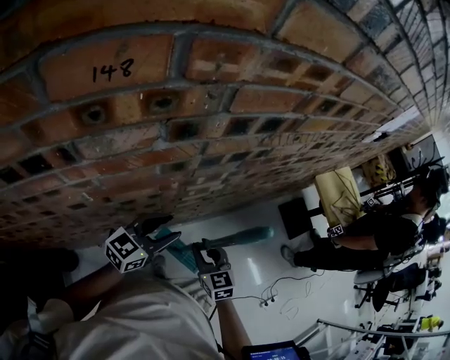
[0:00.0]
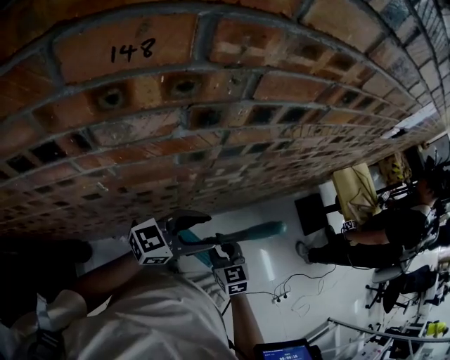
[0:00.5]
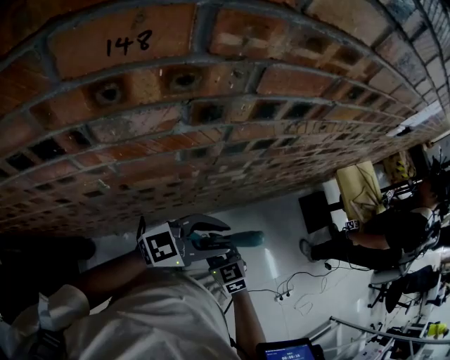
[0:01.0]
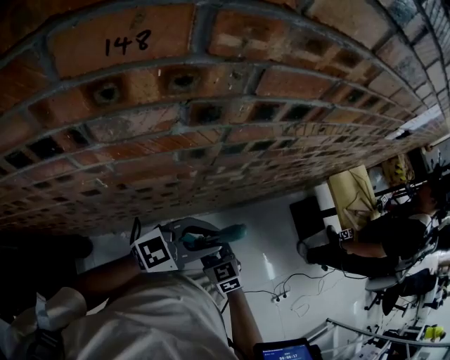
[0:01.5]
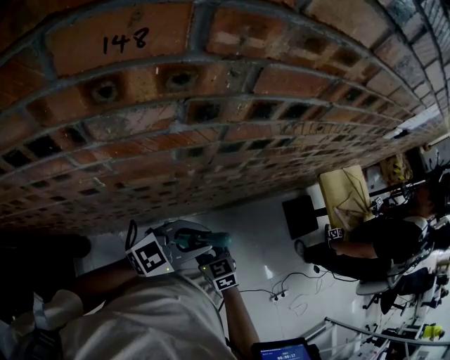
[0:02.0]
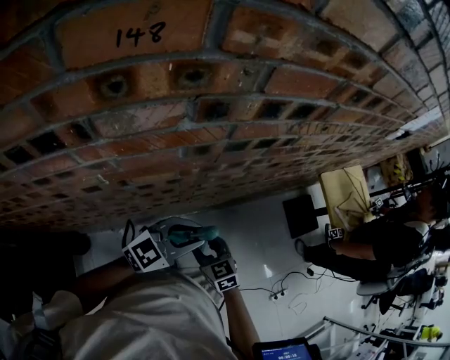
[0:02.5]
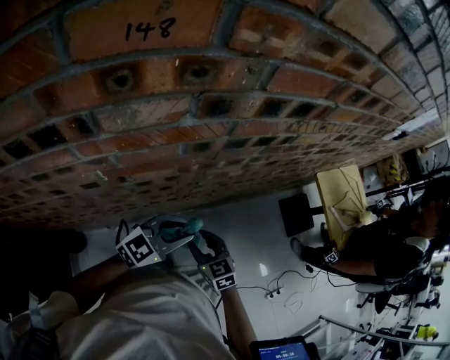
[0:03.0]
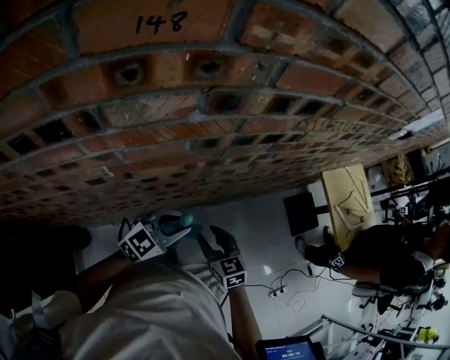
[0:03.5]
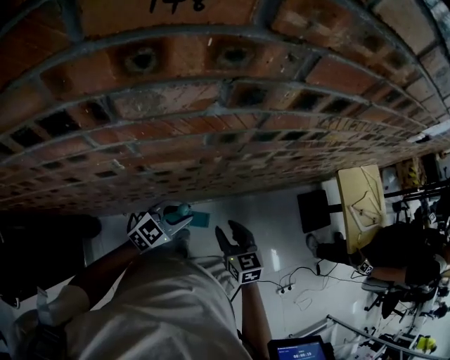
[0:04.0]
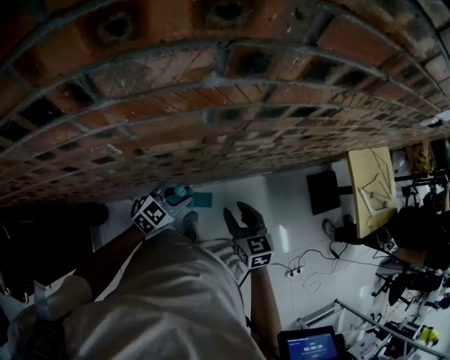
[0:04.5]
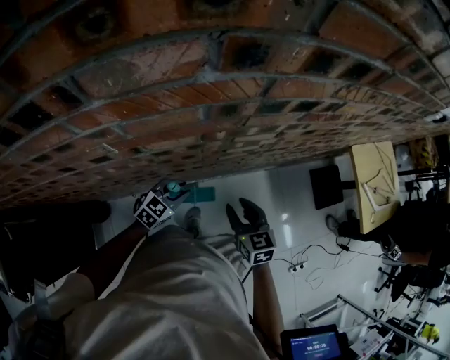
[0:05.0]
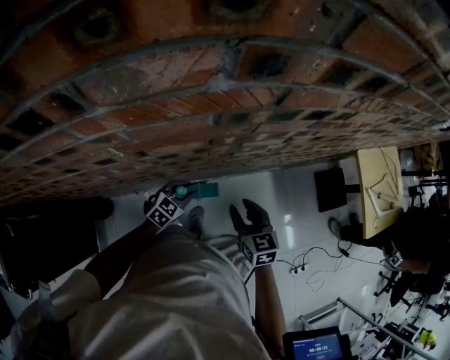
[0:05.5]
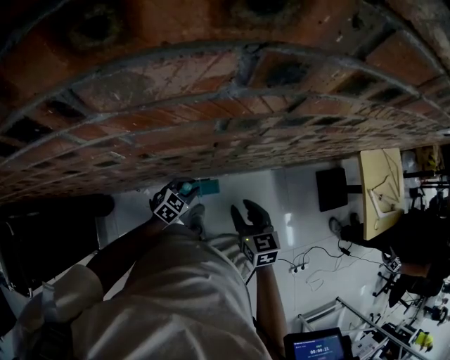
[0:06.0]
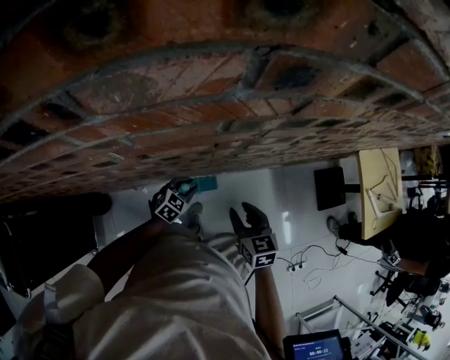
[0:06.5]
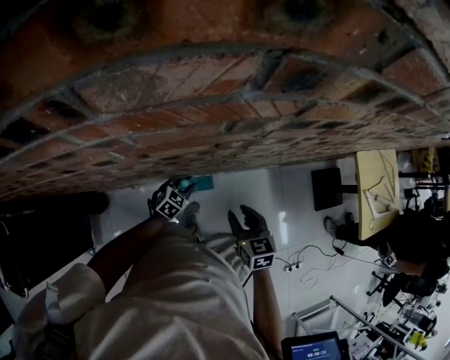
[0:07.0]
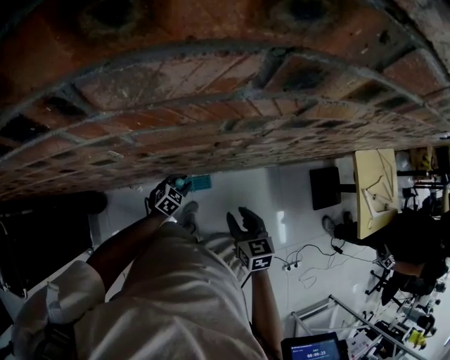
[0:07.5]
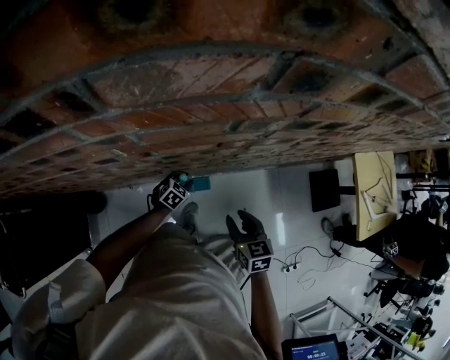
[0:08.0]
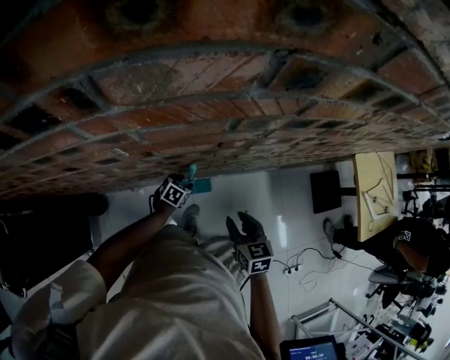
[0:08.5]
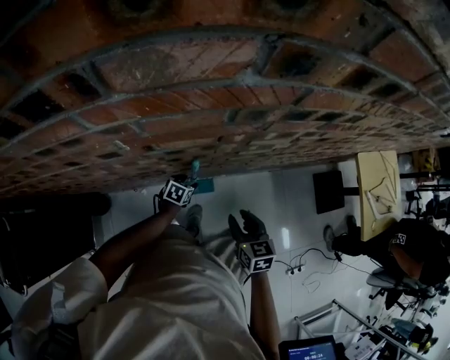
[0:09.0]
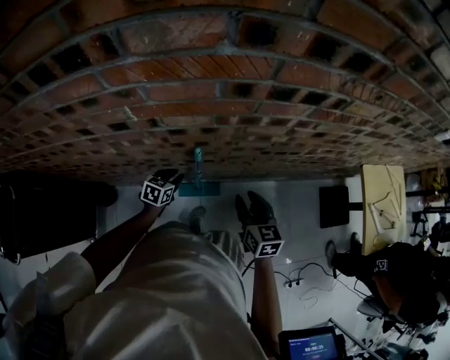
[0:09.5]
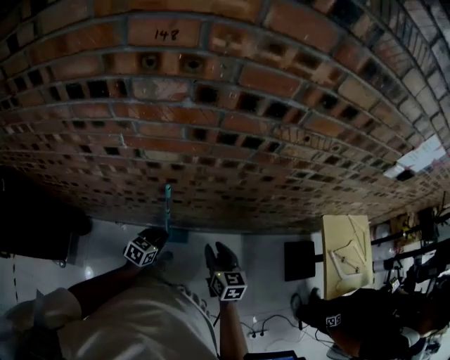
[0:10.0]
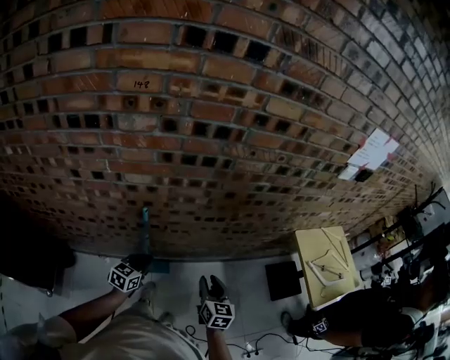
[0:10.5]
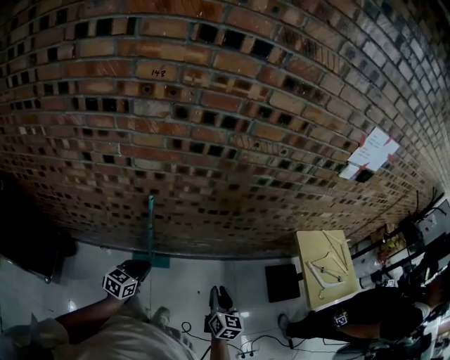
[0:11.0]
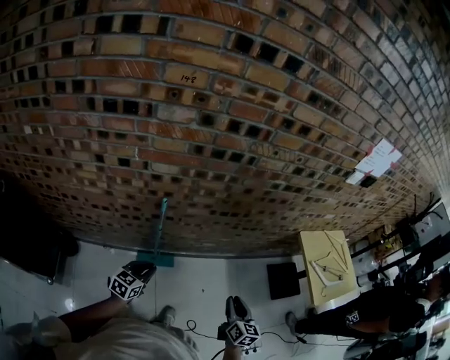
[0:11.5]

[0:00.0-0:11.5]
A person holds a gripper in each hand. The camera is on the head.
0:00.0 to 0:02.0: The right gripper changes place by about 5 cm. Meanwhile the left gripper goes approximately 10 cm to the right, and turns by approximately 20 degrees.
0:02.0 to 0:04.0: The left gripper goes some 20 cm downward and to the left, and turns by about 20 degrees.
0:04.0 to 0:06.0: The left gripper travels downward by some 15 cm, and turns by about 20 degrees.
0:06.0 to 0:07.5: The left gripper heads downward, covering approximately 5 cm.
0:07.5 to 0:09.5: The left gripper travels upward and to the left by some 10 cm, turns by roughly 30 degrees, and opens and closes again, while the right gripper changes place by roughly 5 cm.
0:09.5 to 0:11.5: The left gripper heads backward, upward and to the right, covering roughly 30 cm. The right gripper moves to the right and backward, roughly 30 cm, and rotates approximately 20 degrees.

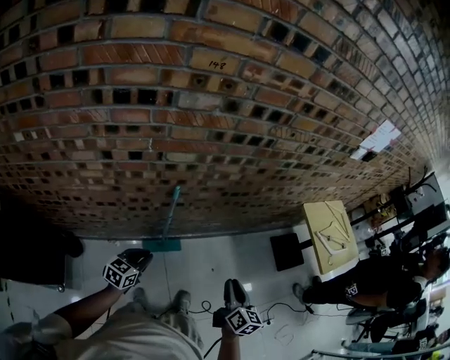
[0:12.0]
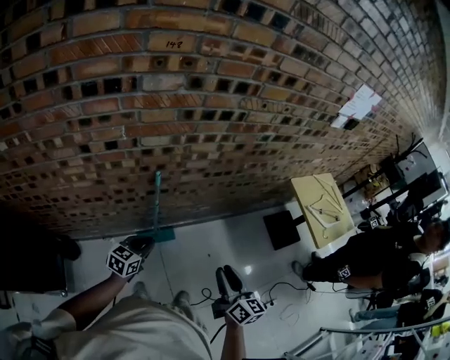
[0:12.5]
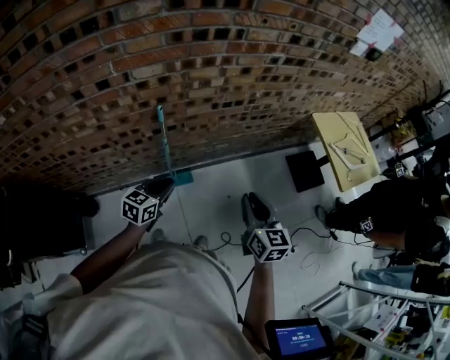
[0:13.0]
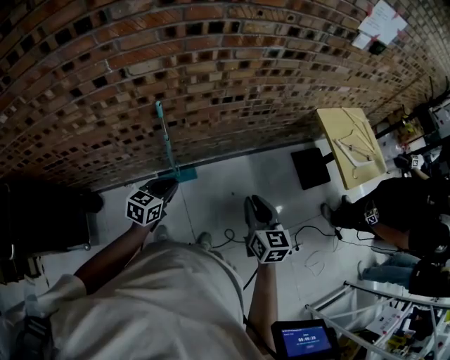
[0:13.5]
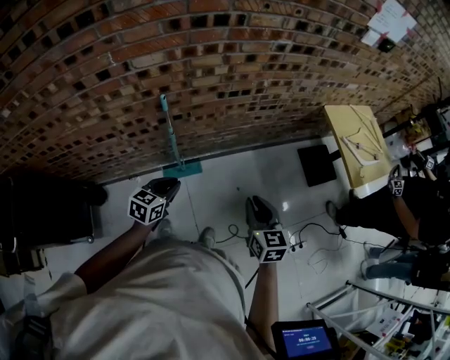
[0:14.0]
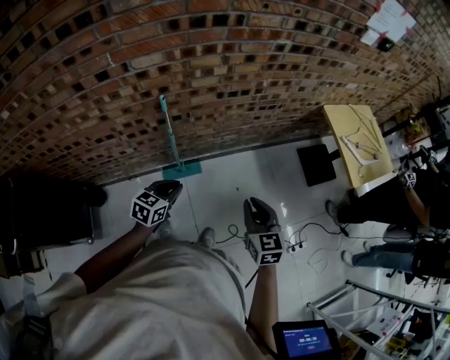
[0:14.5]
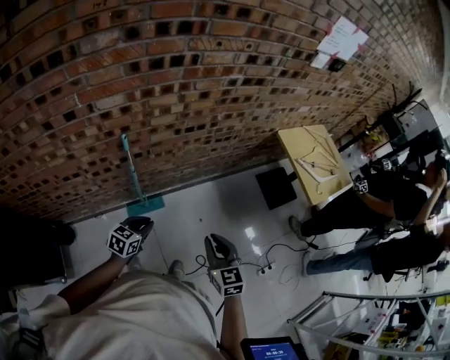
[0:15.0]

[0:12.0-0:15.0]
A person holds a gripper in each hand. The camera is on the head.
0:12.0 to 0:13.5: The left gripper shifts some 15 cm to the right, while the right gripper moves to the right, about 10 cm, and rotates some 20 degrees.
0:13.5 to 0:15.0: The right gripper shifts roughly 5 cm backward; the left gripper shifts roughly 5 cm downward.

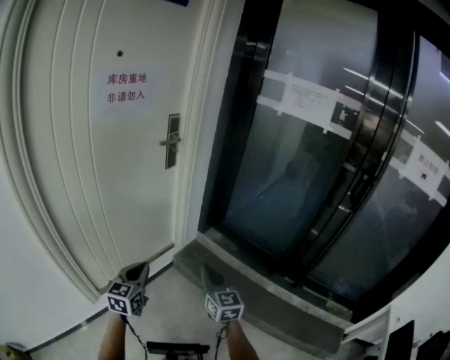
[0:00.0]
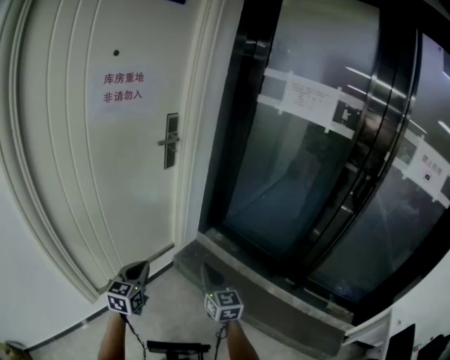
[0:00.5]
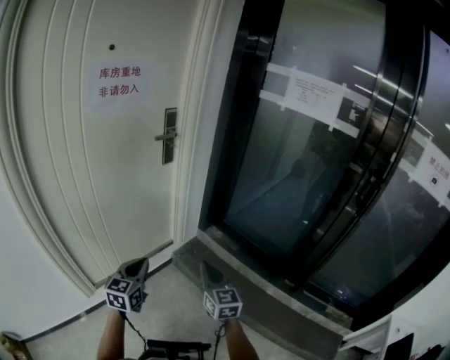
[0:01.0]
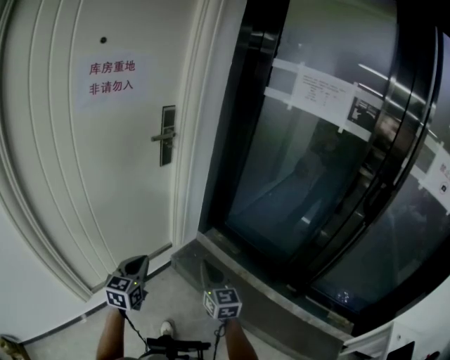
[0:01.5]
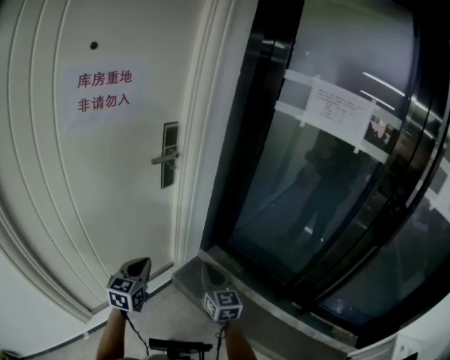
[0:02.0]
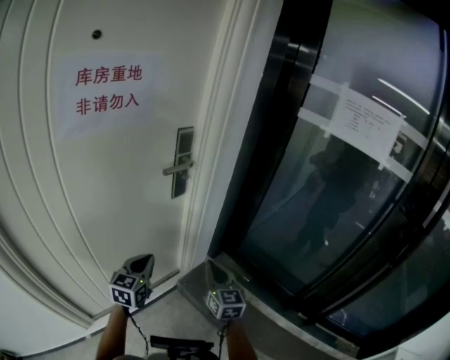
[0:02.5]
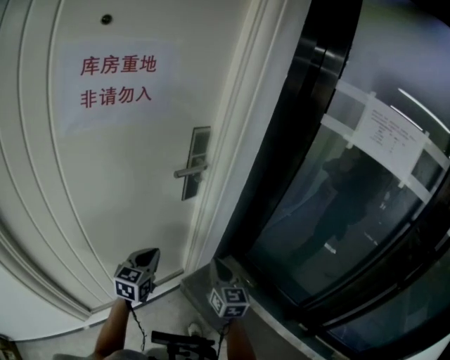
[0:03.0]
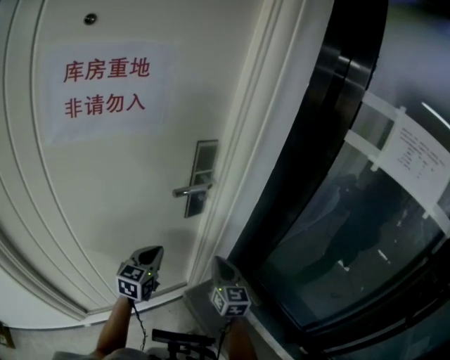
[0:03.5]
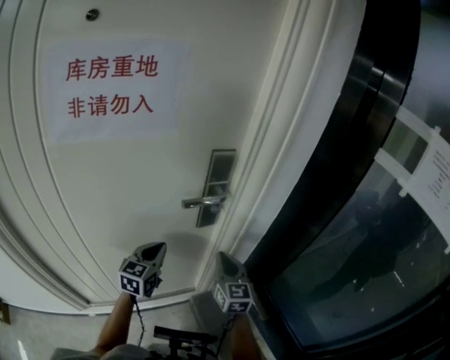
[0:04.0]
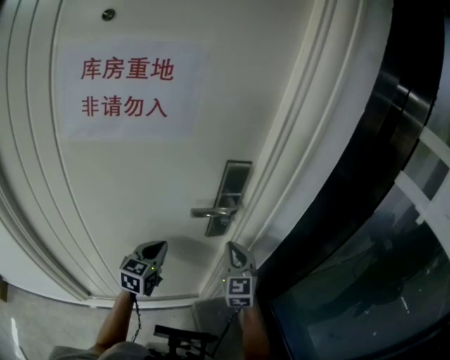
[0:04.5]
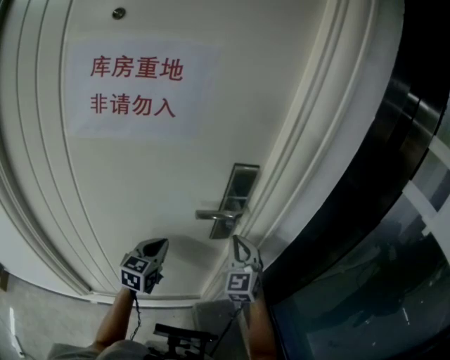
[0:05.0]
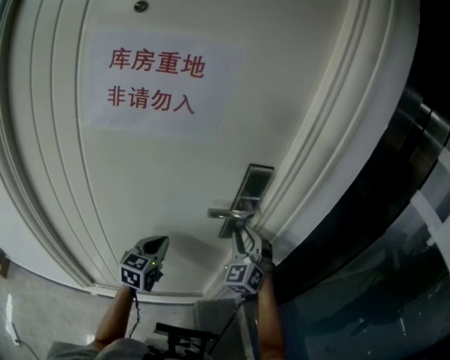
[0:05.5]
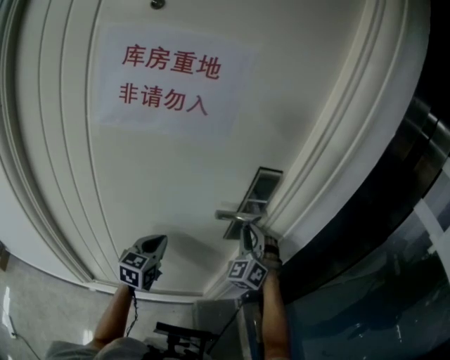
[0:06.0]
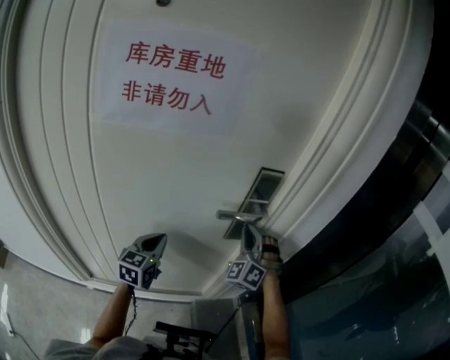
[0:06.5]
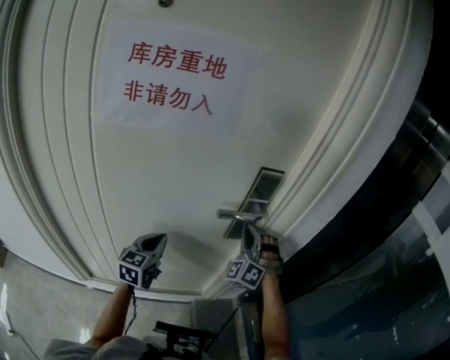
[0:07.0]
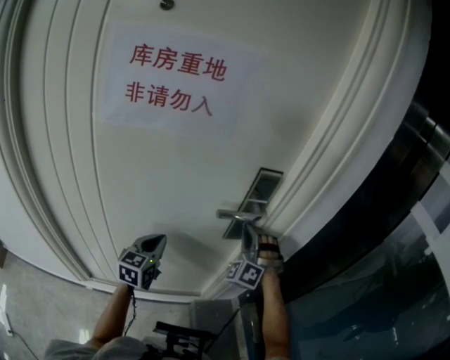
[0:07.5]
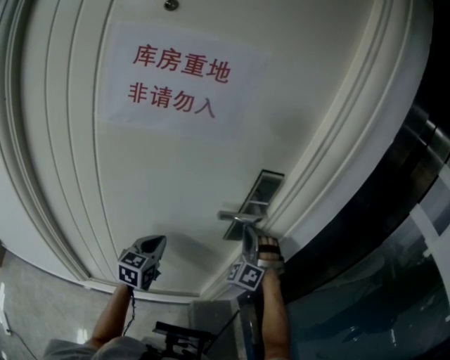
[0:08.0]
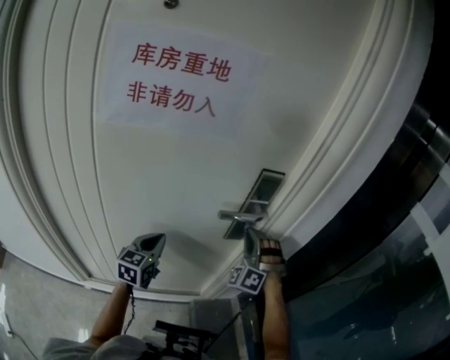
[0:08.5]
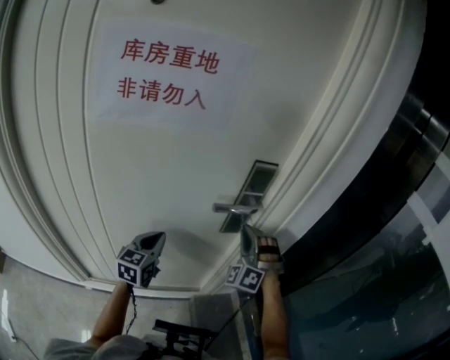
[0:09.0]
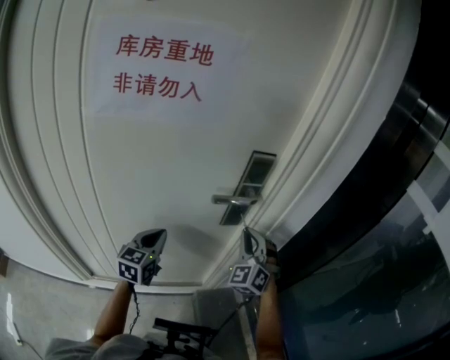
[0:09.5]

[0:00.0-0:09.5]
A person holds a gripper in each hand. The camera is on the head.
0:00.0 to 0:02.0: The two grippers go some 25 cm forward.
0:02.0 to 0:04.0: The two grippers go roughly 30 cm forward.
0:04.0 to 0:05.5: The right gripper shifts roughly 10 cm forward and upward, rotates around the line of its fingers by approximately 50 degrees, counterclockwise from behind, and opens, while the left gripper goes some 5 cm to the left.
0:05.5 to 0:07.5: The right gripper turns by roughly 30 degrees, and closes its fingers.
0:07.5 to 0:09.5: The right gripper heads backward, covering roughly 5 cm, and turns by roughly 30 degrees.

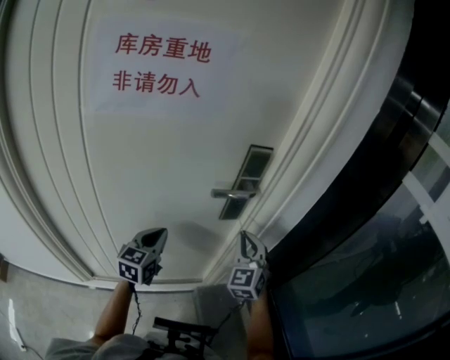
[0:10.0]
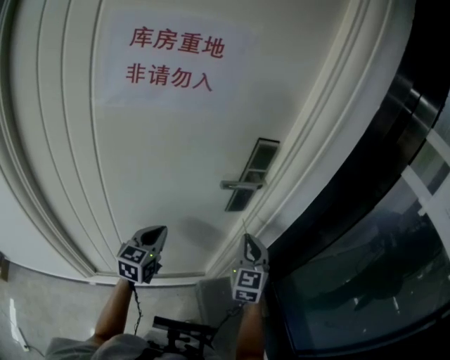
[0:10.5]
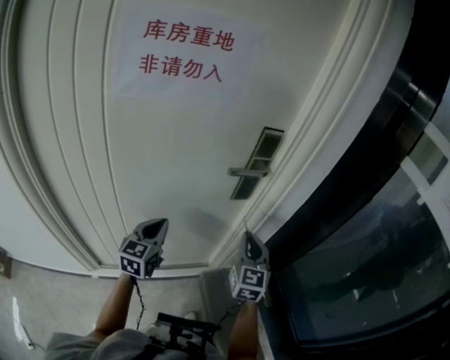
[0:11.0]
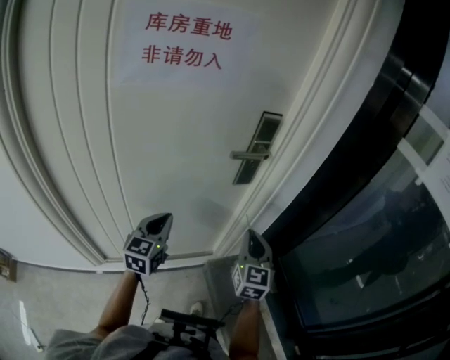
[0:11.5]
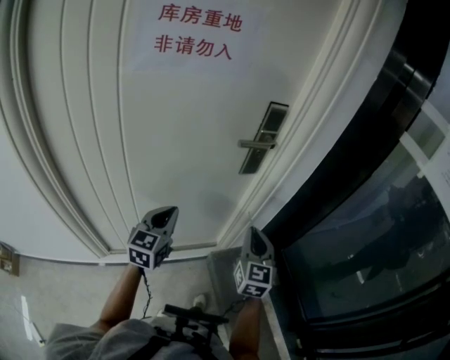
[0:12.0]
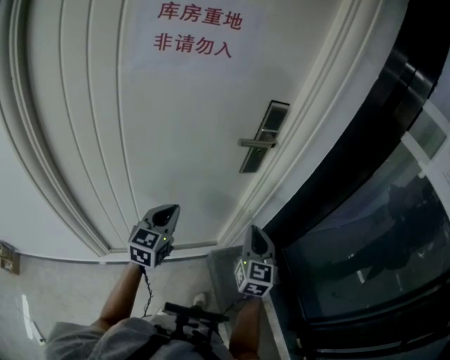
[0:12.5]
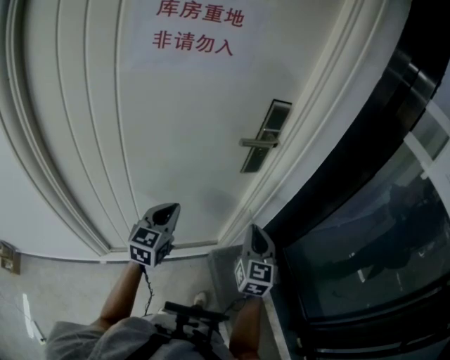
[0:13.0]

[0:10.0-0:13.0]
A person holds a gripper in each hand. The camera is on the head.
0:10.0 to 0:11.5: The grippers both shift backward by roughly 10 cm. The right gripper changes its angle by about 30 degrees.
0:11.5 to 0:13.0: The grippers make only small movements.
